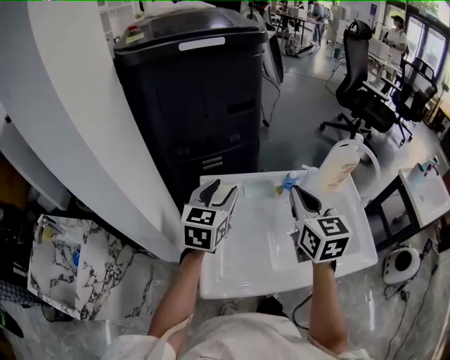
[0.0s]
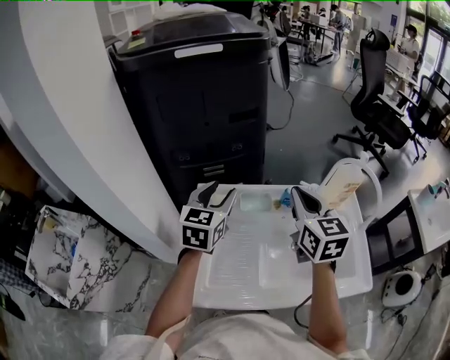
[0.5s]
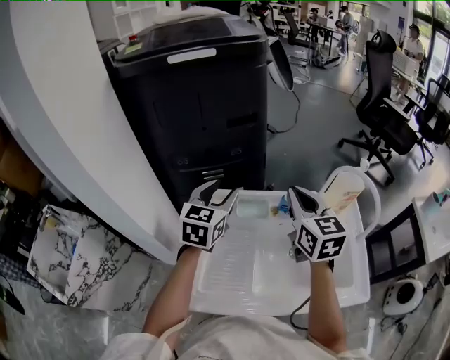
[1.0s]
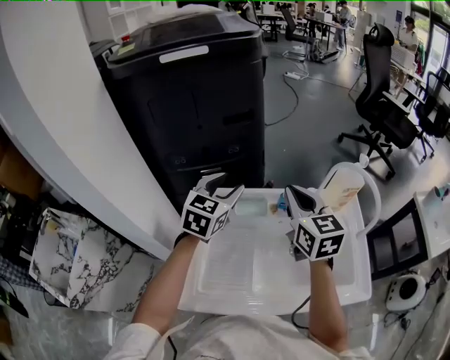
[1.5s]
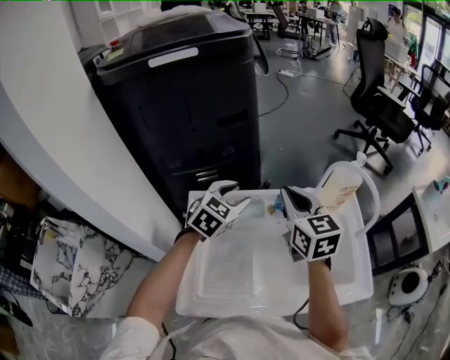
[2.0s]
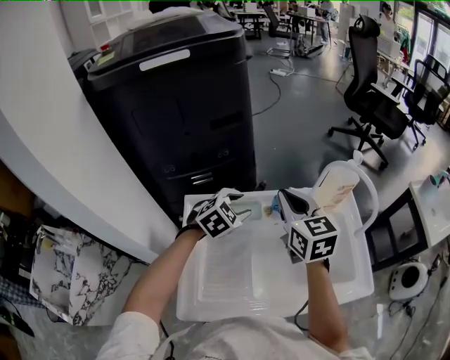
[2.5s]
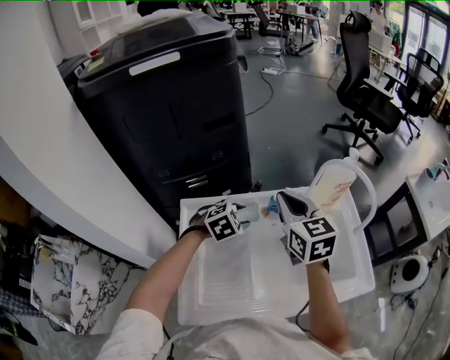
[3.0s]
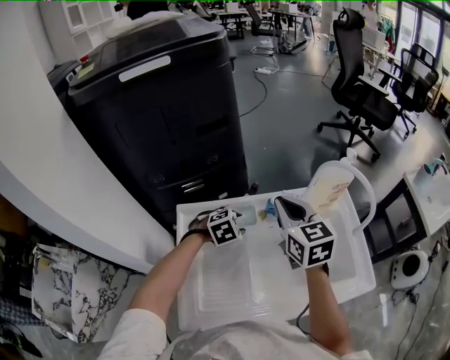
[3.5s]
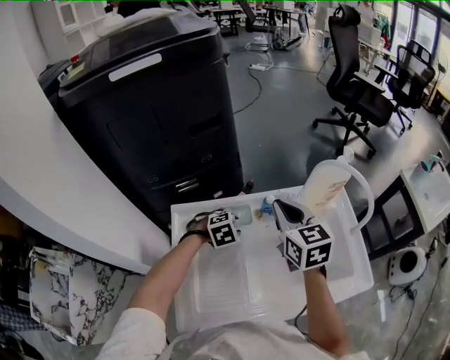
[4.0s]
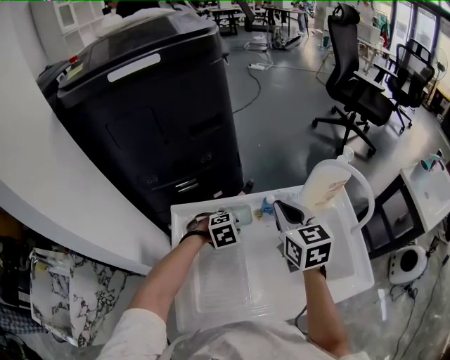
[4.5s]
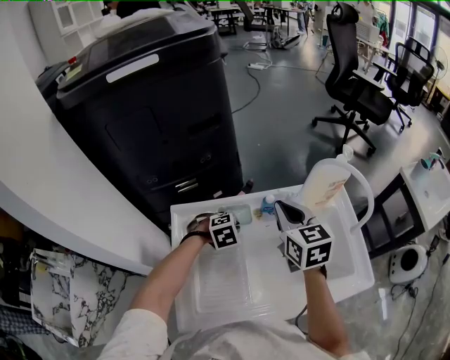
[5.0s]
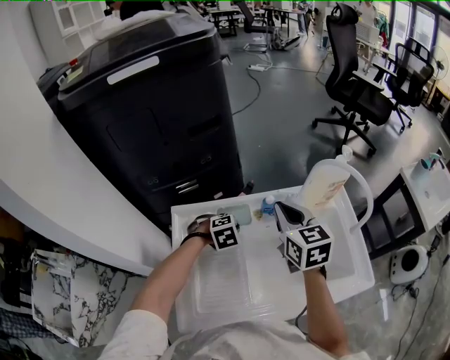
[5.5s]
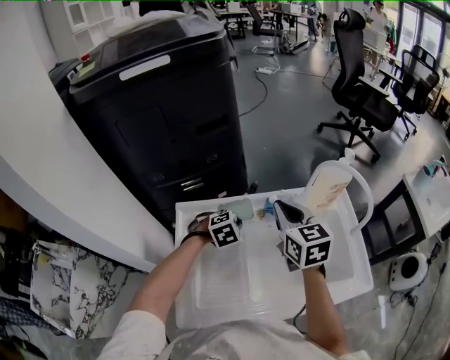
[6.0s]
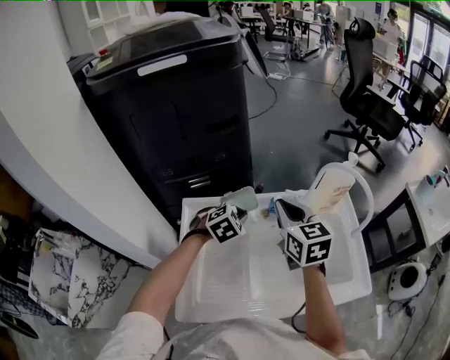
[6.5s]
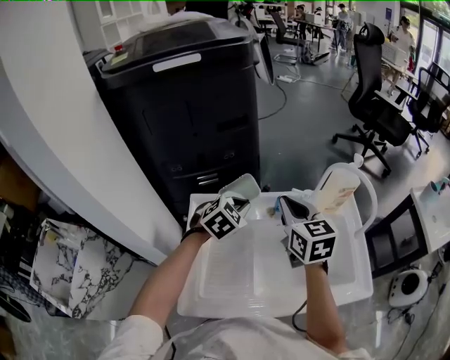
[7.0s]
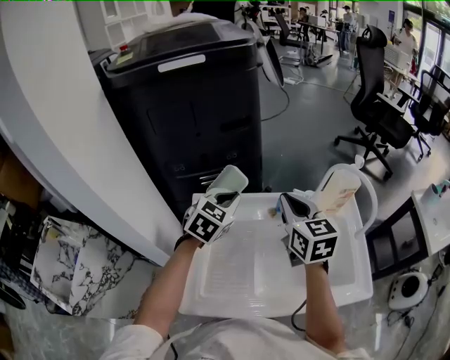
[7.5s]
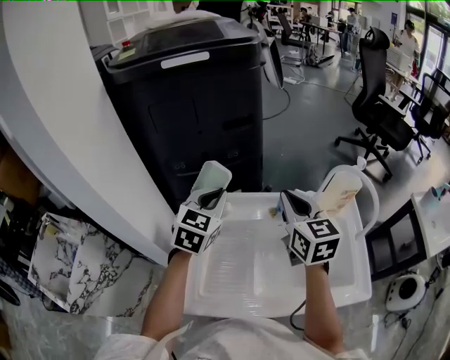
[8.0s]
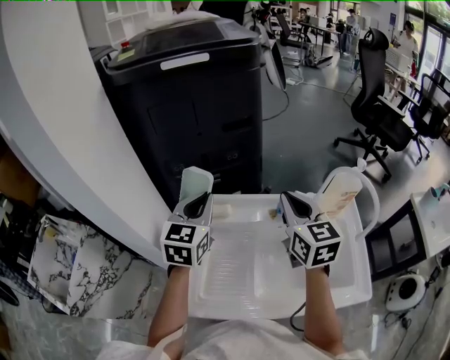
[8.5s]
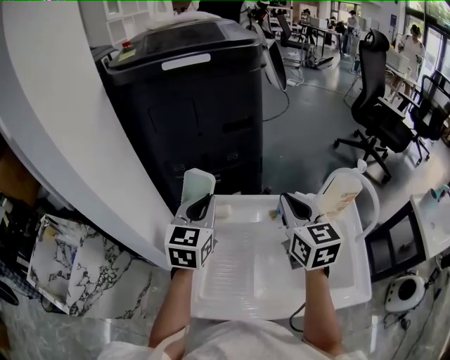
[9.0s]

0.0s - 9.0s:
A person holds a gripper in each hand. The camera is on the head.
0.0s - 2.0s: The right gripper moves forward, approximately 10 cm; the left gripper is displaced to the right, forward and downward by roughly 15 cm, and swivels about 30 degrees.
2.0s - 4.5s: The right gripper goes some 5 cm downward; the left gripper travels downward by about 20 cm, tips its fingers downward by roughly 40 degrees, and closes up.
4.5s - 7.0s: The left gripper shifts some 15 cm upward, turns by approximately 30 degrees, and closes up.
7.0s - 9.0s: The left gripper moves to the left and upward, about 15 cm, and changes its angle by about 50 degrees.

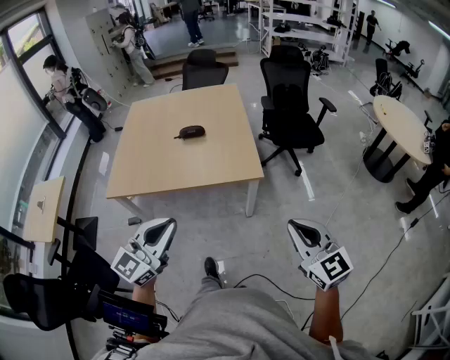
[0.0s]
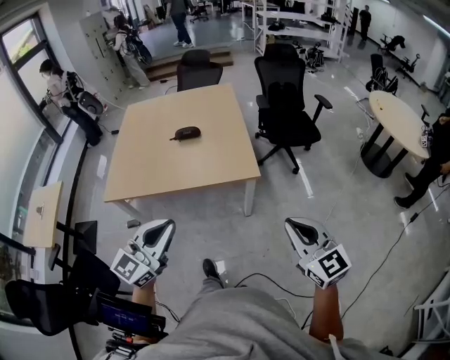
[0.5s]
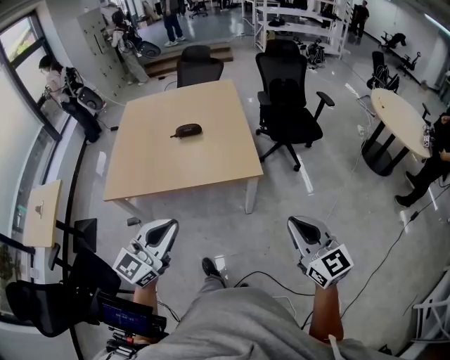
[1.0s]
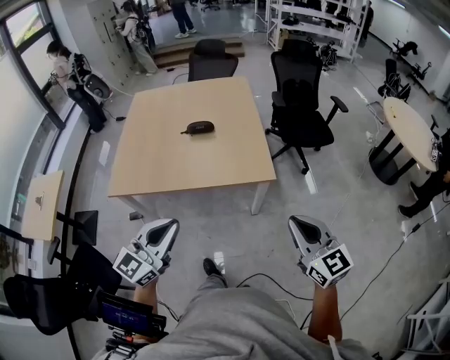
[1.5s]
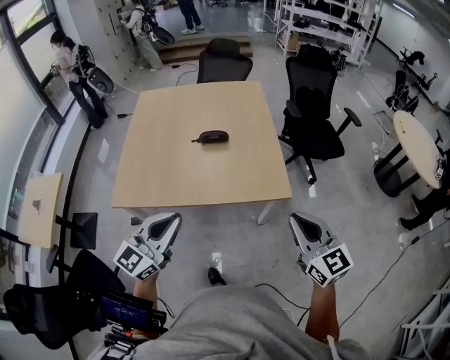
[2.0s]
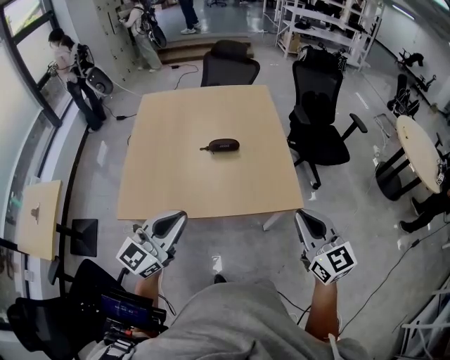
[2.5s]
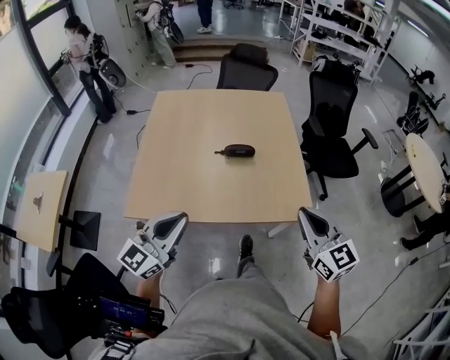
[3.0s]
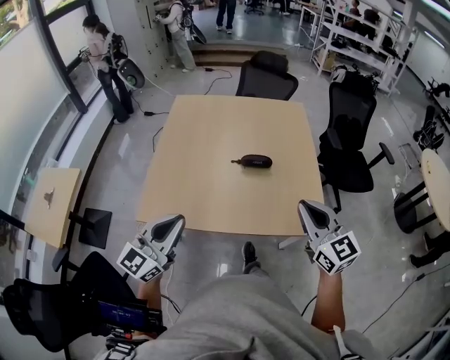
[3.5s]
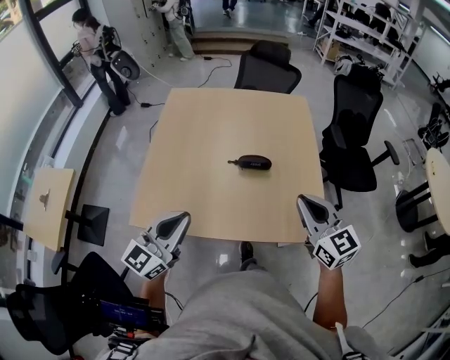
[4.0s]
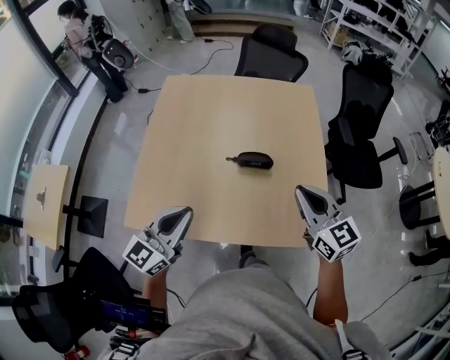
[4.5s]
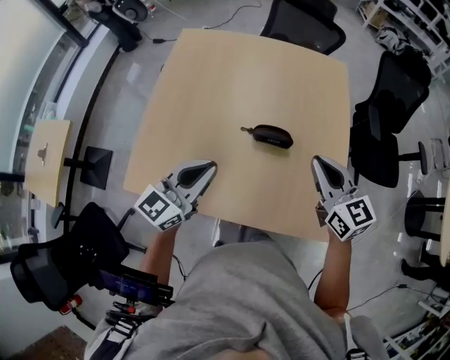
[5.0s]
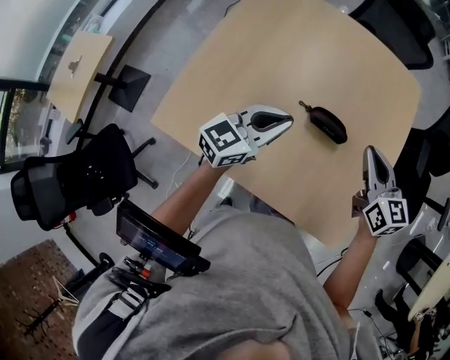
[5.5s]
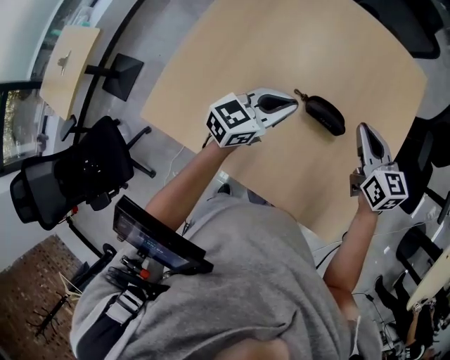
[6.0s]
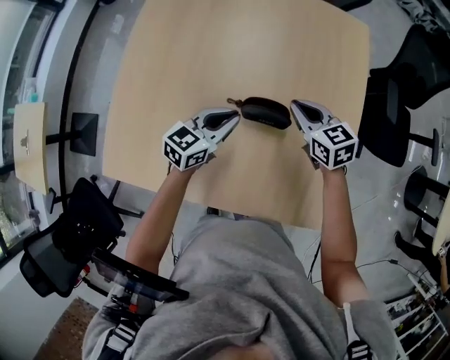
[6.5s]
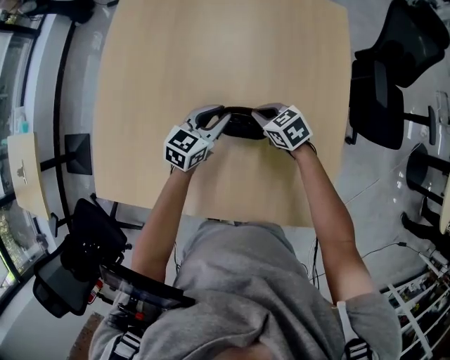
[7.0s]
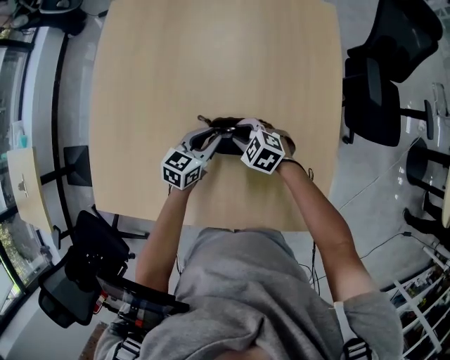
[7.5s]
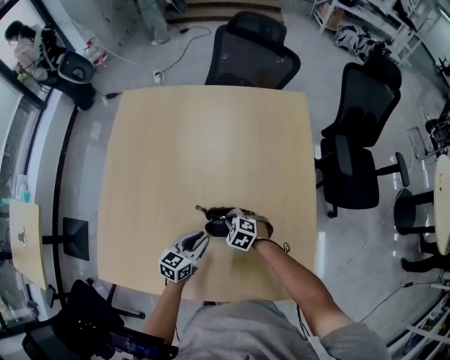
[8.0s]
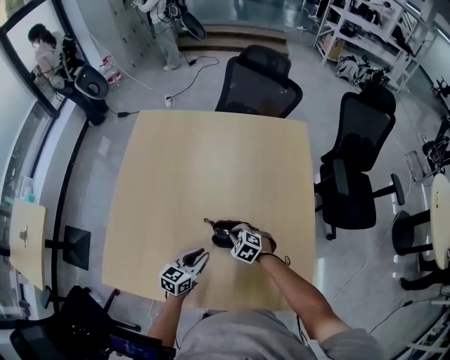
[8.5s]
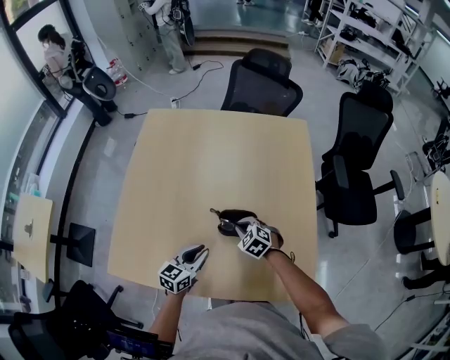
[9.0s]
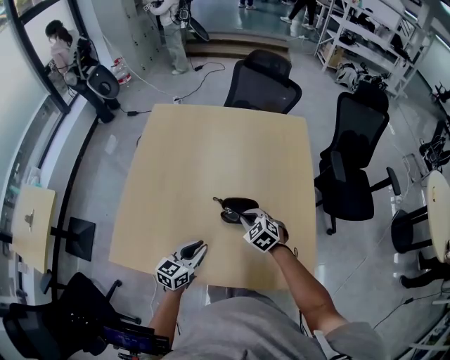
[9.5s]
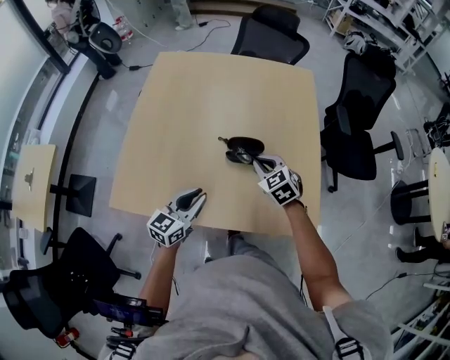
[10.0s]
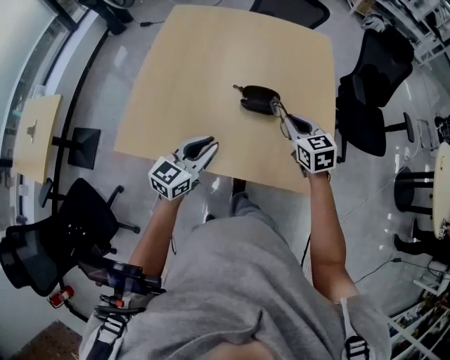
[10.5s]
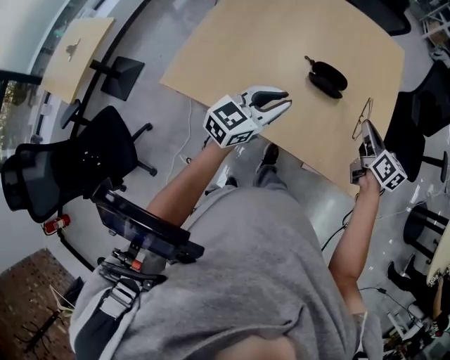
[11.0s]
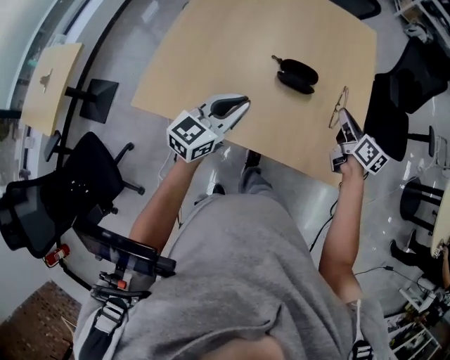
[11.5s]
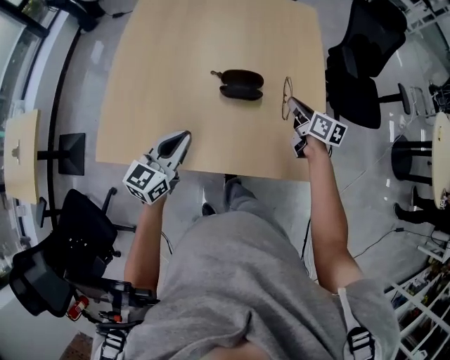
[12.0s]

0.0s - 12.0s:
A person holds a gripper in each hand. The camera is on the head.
0.0s - 2.0s: The two grippers go about 25 cm forward and to the left.
2.0s - 4.0s: The two grippers go some 25 cm forward and to the left.
4.0s - 6.0s: Both grippers move forward and downward, some 35 cm. The left gripper rotates about 20 degrees; the right gripper changes its angle by some 20 degrees.
6.0s - 8.0s: The right gripper heads downward, covering some 25 cm, points its fingers roughly 40 degrees further downward, and opens and closes again. The left gripper travels downward and to the right by some 15 cm.
8.0s - 10.0s: The left gripper is displaced backward, upward and to the left by some 25 cm. The right gripper moves upward and backward, some 25 cm, and turns by roughly 30 degrees.
10.0s - 12.0s: The right gripper travels to the right by roughly 15 cm, and twists some 60 degrees clockwise, seen from behind.

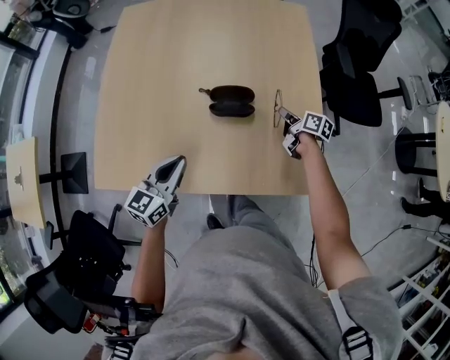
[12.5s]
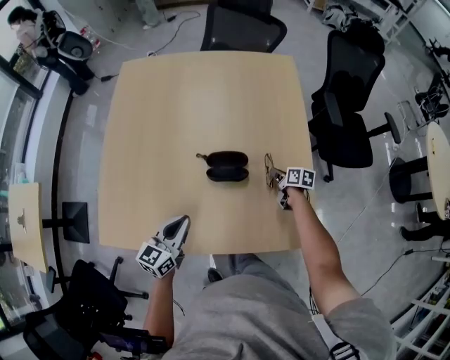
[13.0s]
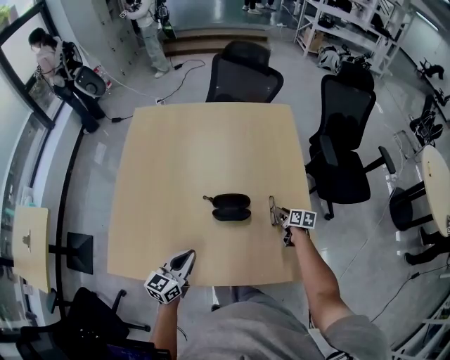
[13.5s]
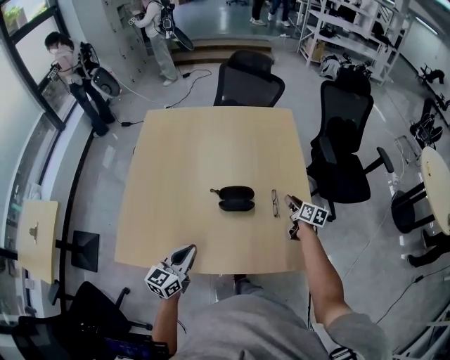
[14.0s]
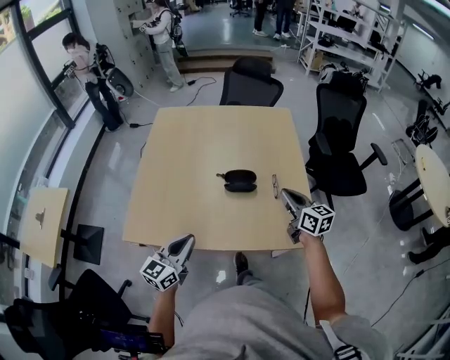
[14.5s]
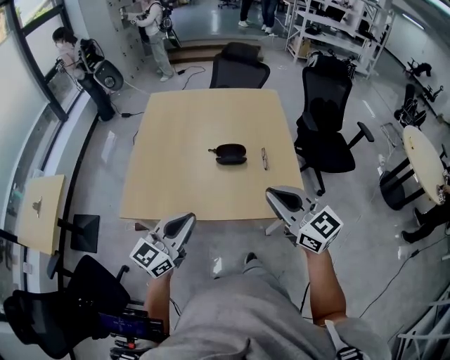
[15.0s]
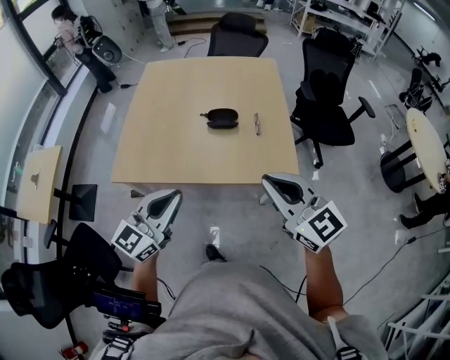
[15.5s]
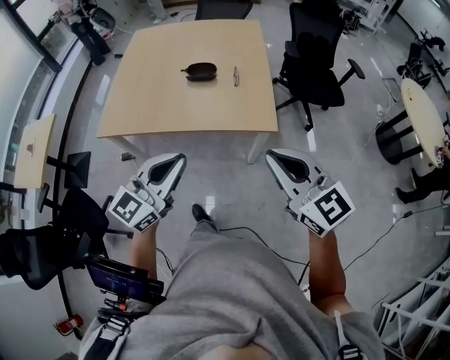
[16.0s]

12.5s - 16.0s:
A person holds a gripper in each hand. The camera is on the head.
12.5s - 14.5s: The left gripper heads backward and upward, covering about 20 cm. The right gripper moves upward and backward, roughly 30 cm, turns by some 40 degrees, and opens, then closes once more.
14.5s - 16.0s: The right gripper travels backward by approximately 50 cm, and rotates roughly 30 degrees. Meanwhile the left gripper heads backward, to the right and upward, covering about 40 cm.

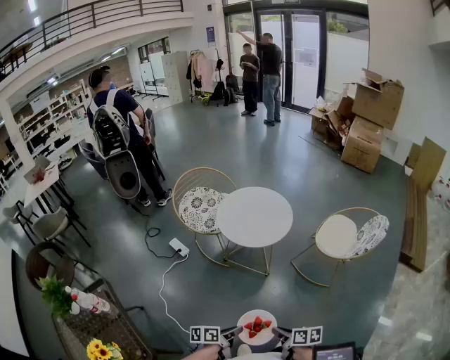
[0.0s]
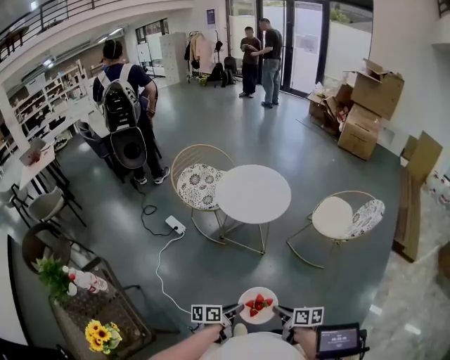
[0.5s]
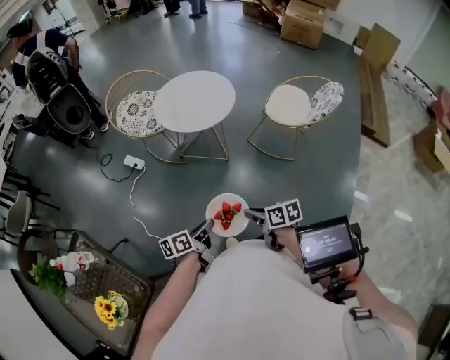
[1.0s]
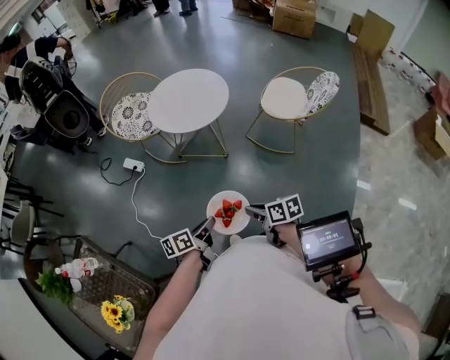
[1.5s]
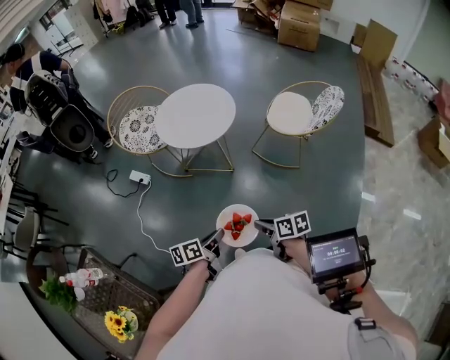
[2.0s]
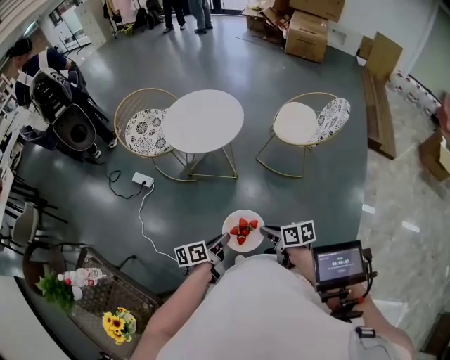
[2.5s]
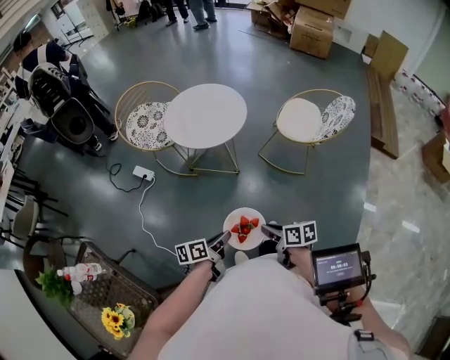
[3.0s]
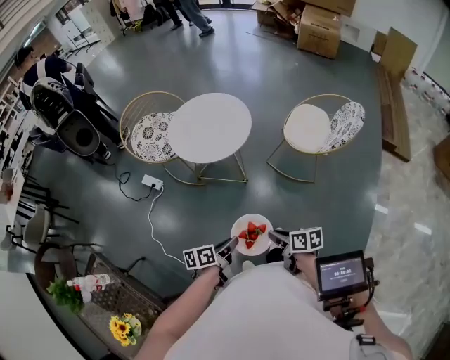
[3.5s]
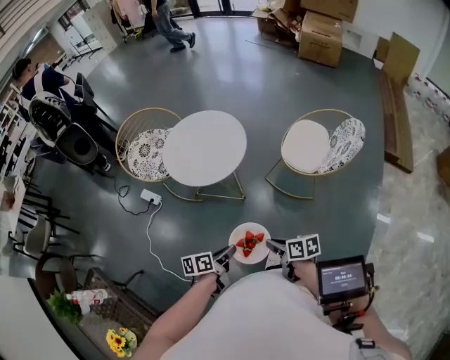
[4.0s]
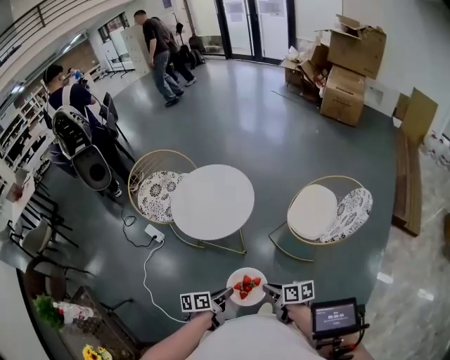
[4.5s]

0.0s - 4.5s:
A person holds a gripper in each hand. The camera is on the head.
0.0s - 2.0s: The grippers stay close to where they were, moving slightly.
2.0s - 4.5s: The two grippers go about 25 cm forward and to the right.
